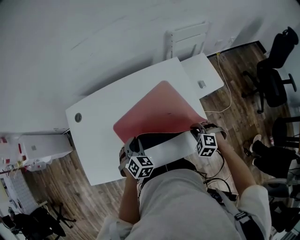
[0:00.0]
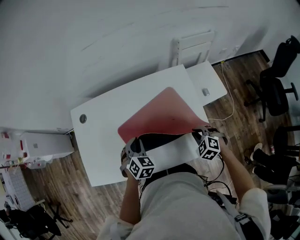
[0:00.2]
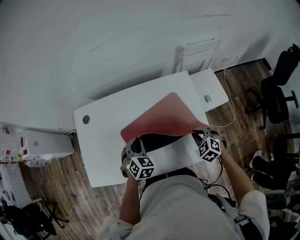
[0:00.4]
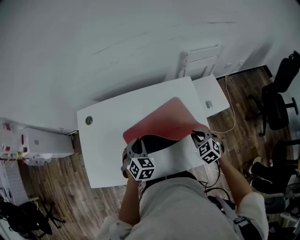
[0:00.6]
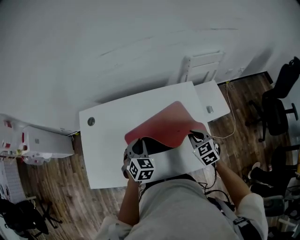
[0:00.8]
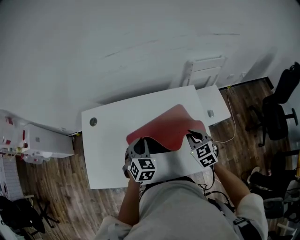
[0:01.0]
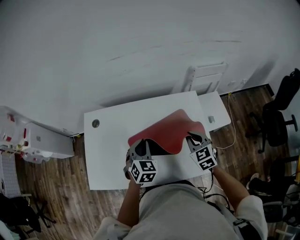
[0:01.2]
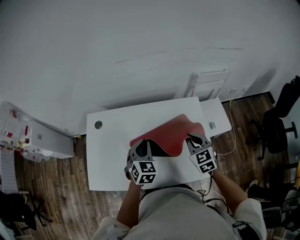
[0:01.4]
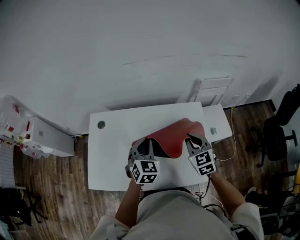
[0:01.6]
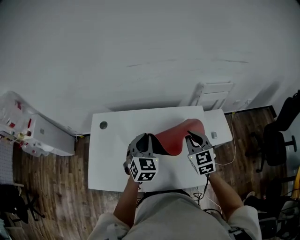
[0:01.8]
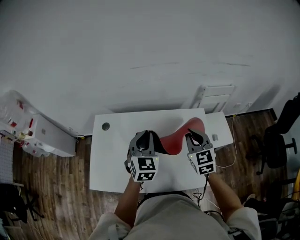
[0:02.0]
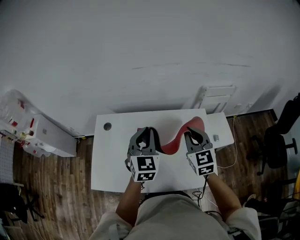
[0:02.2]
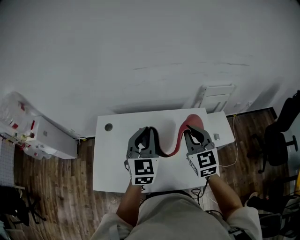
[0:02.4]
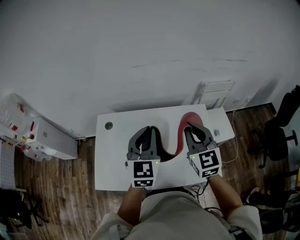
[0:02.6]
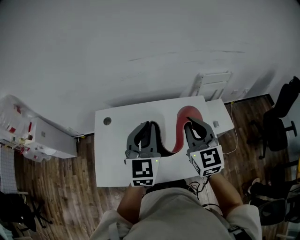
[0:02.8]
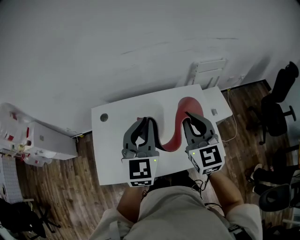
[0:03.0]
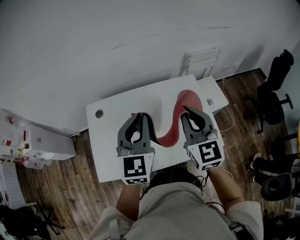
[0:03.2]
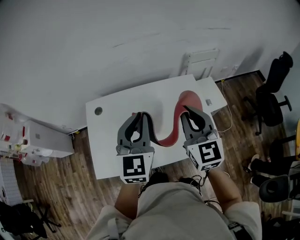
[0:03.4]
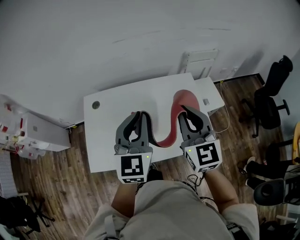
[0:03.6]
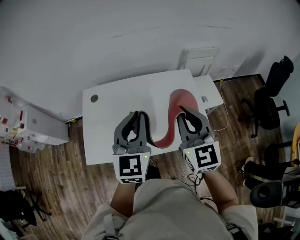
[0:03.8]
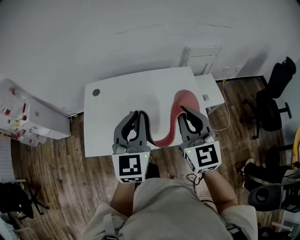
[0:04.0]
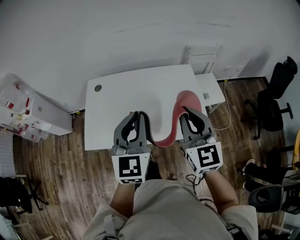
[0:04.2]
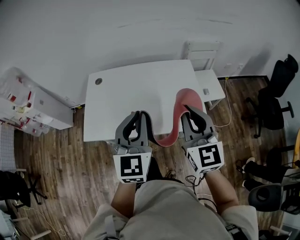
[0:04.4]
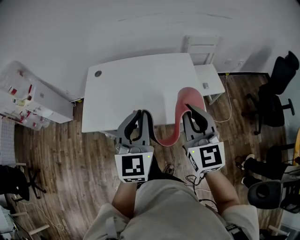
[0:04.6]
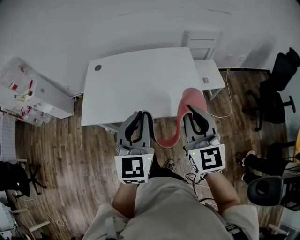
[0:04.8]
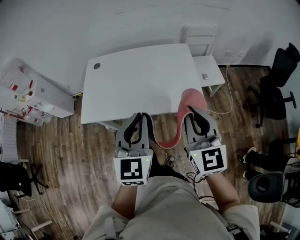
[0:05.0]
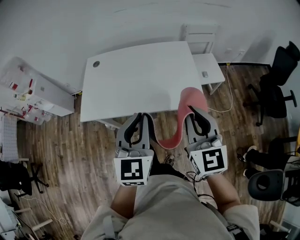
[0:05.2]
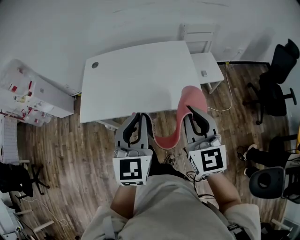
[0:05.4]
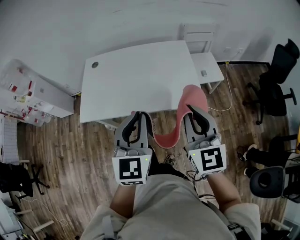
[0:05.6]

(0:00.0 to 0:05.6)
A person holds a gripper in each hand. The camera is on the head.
0:00.0 - 0:01.4: The right gripper is displaced upward, forward and to the left by about 25 cm, and points its fingers about 30 degrees further upward. The left gripper heads upward and forward, covering approximately 15 cm, and rotates about 30 degrees.
0:01.4 - 0:02.8: The right gripper heads upward and to the left, covering about 20 cm, and changes its angle by approximately 30 degrees, while the left gripper is displaced upward by approximately 20 cm, and turns by about 30 degrees.
0:02.8 - 0:04.2: The grippers both shift backward by roughly 20 cm.
0:04.2 - 0:05.6: The right gripper moves backward and to the right, about 15 cm. Meanwhile the left gripper travels backward by about 15 cm.

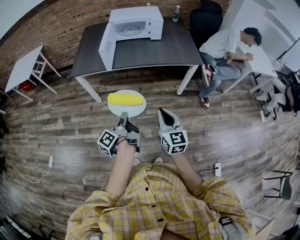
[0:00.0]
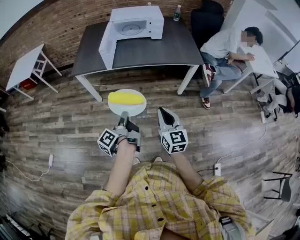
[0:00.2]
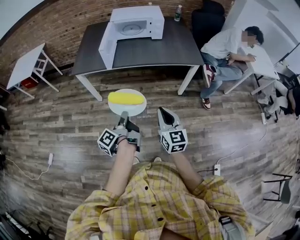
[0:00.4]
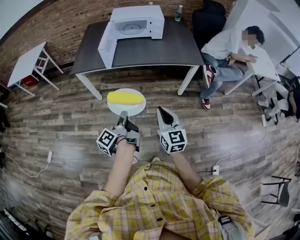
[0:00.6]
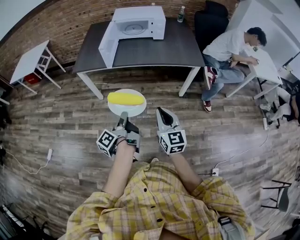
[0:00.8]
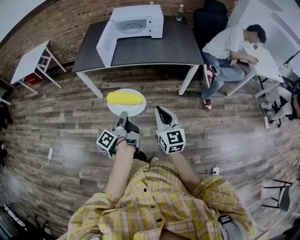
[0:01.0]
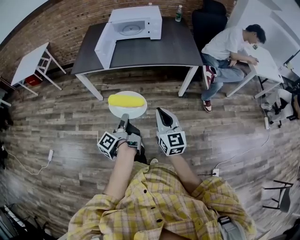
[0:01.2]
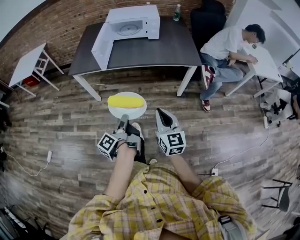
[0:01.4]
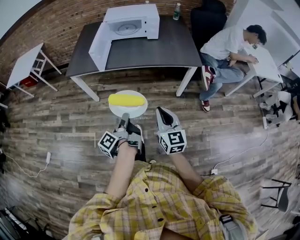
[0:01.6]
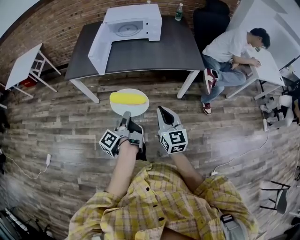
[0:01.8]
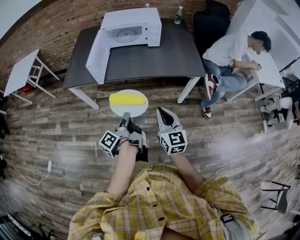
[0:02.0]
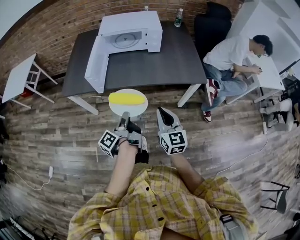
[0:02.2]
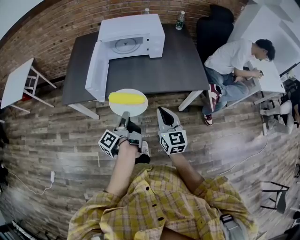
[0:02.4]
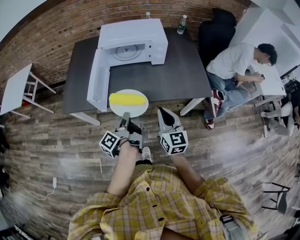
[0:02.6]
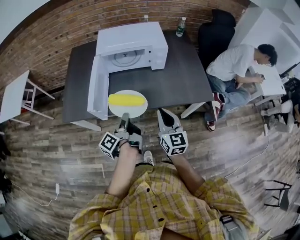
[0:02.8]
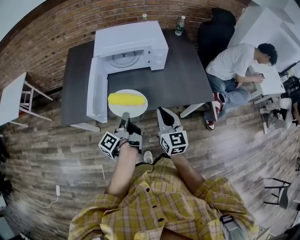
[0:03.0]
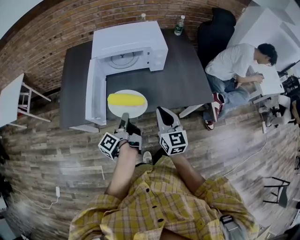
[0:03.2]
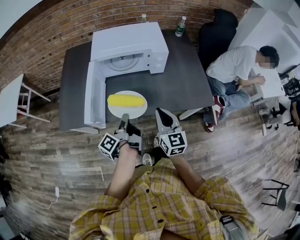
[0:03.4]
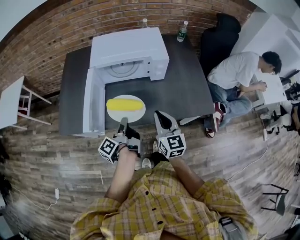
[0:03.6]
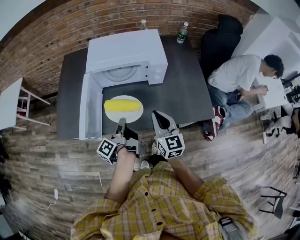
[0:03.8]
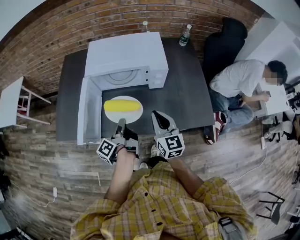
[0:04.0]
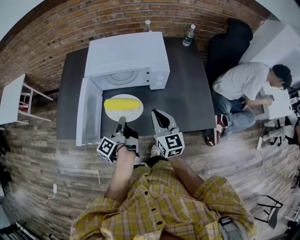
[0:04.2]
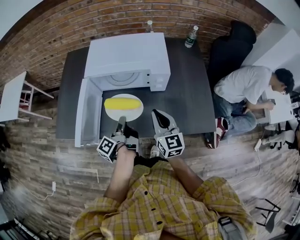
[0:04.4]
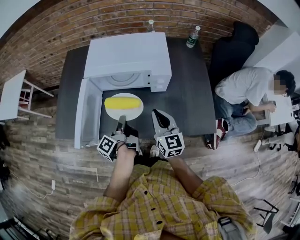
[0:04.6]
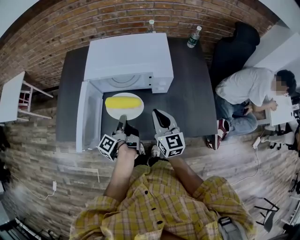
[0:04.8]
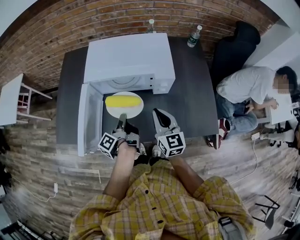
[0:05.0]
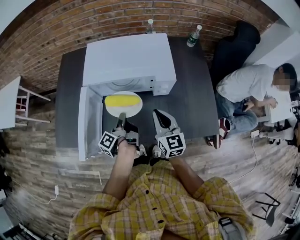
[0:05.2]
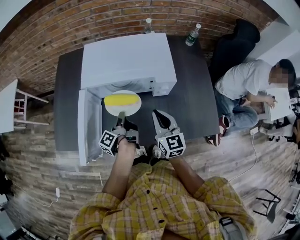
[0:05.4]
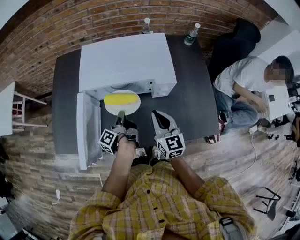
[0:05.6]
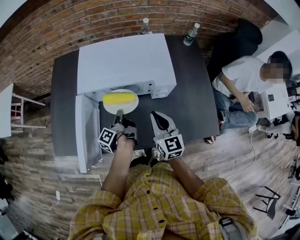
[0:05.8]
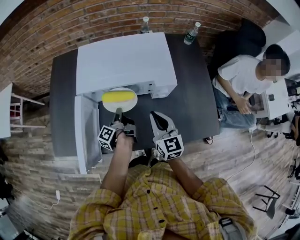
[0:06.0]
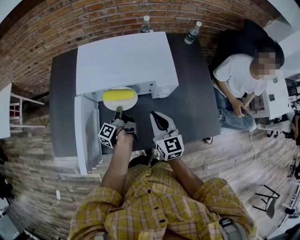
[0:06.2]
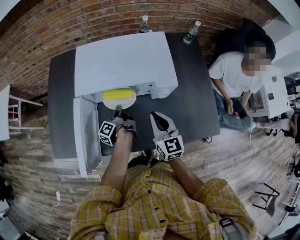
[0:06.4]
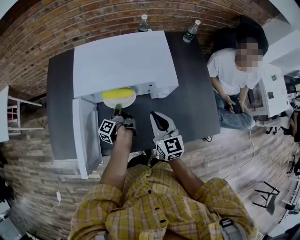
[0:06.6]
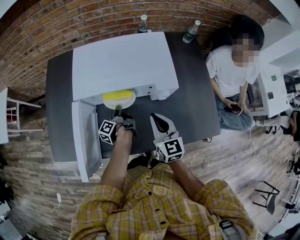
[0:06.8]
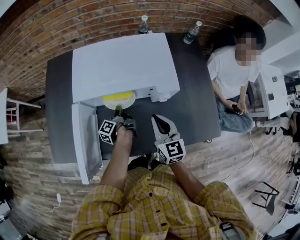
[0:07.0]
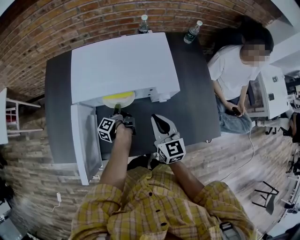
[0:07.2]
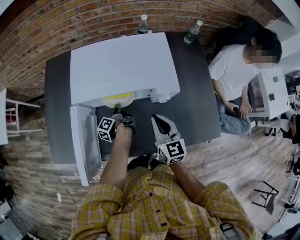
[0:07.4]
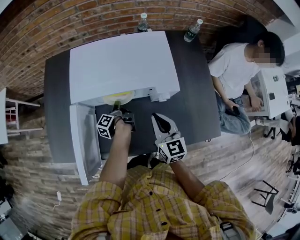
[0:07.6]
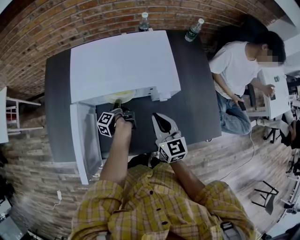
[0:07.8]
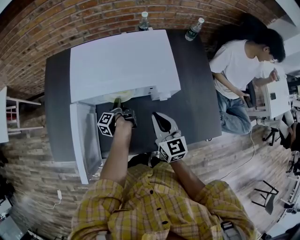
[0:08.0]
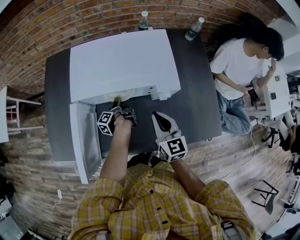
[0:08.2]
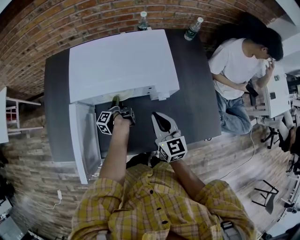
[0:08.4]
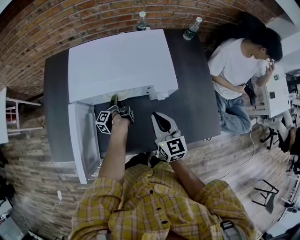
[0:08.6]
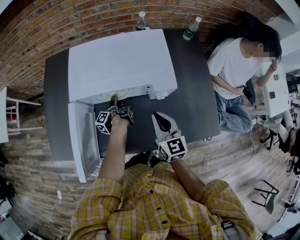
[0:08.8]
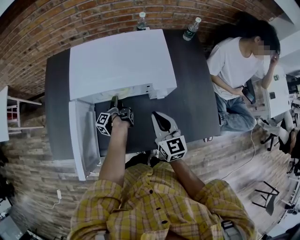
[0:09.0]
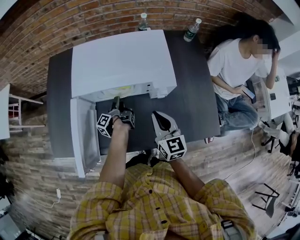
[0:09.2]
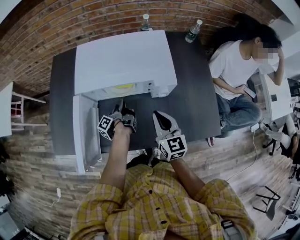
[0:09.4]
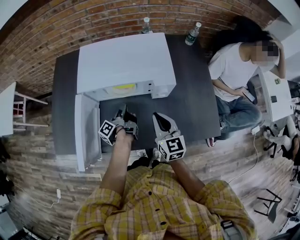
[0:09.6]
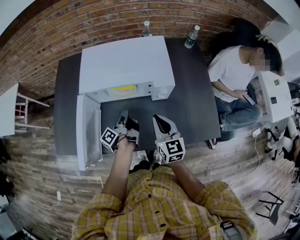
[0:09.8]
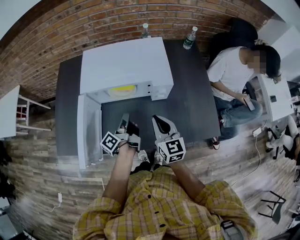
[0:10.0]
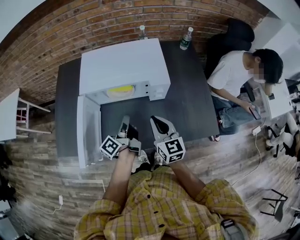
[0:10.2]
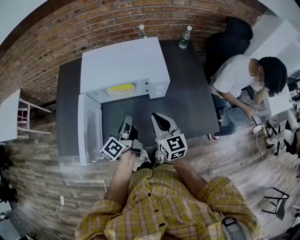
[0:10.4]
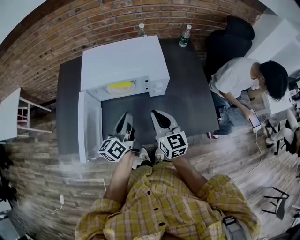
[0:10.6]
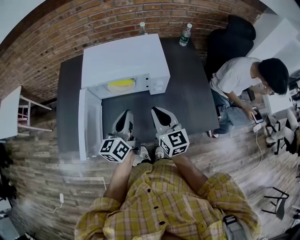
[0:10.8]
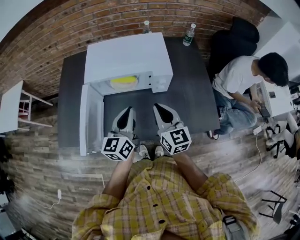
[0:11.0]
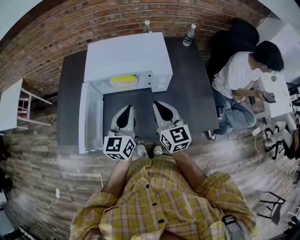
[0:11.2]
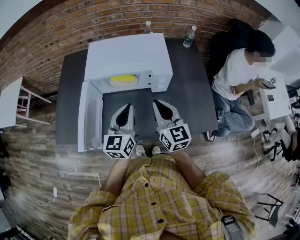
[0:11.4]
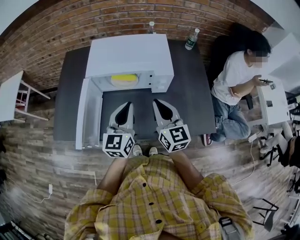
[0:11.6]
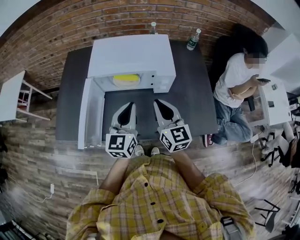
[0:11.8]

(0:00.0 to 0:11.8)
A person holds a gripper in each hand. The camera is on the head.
0:00.0 - 0:01.4: The right gripper moves some 5 cm.
0:01.4 - 0:03.0: The right gripper moves about 40 cm.
0:03.0 - 0:04.4: The right gripper moves about 20 cm.
0:04.4 - 0:06.0: The right gripper ends up about 10 cm from where it was.
0:08.8 - 0:10.4: The right gripper moves about 10 cm.
0:10.4 - 0:11.8: The right gripper goes roughly 5 cm upward.

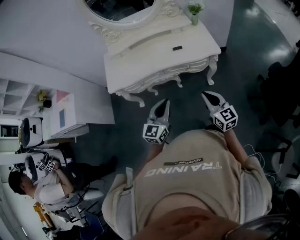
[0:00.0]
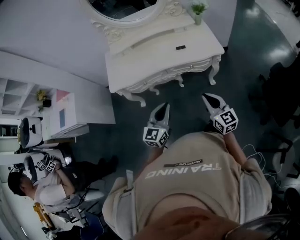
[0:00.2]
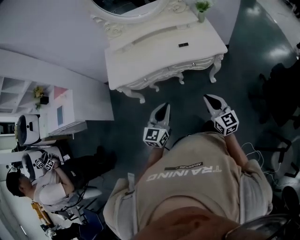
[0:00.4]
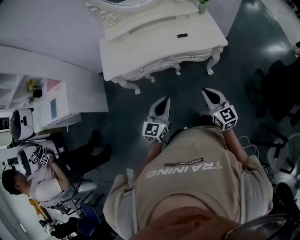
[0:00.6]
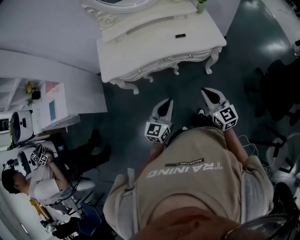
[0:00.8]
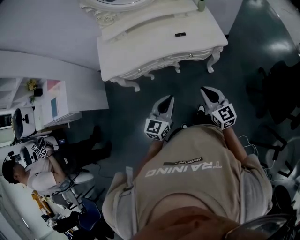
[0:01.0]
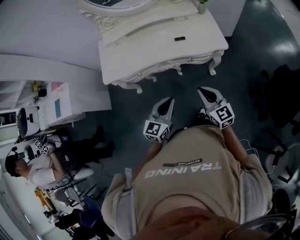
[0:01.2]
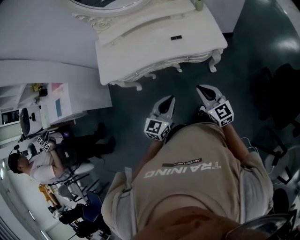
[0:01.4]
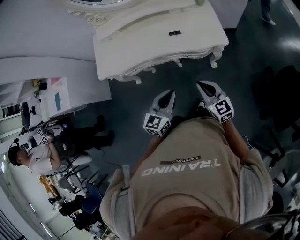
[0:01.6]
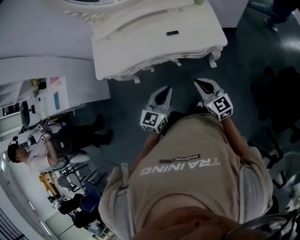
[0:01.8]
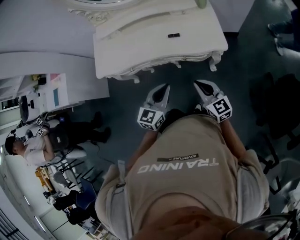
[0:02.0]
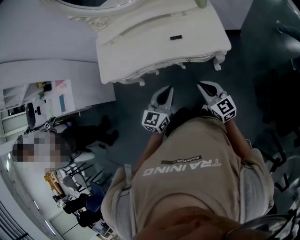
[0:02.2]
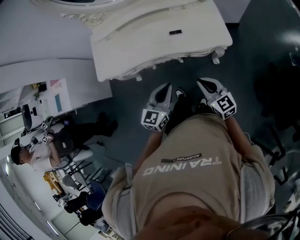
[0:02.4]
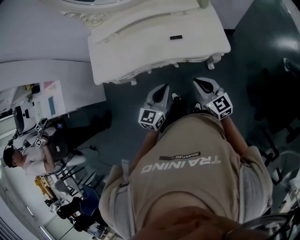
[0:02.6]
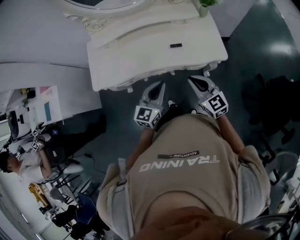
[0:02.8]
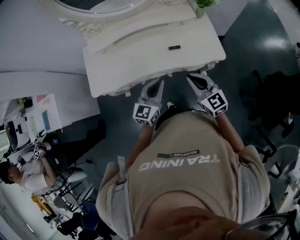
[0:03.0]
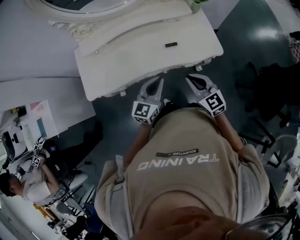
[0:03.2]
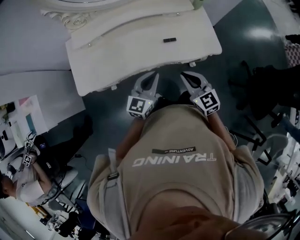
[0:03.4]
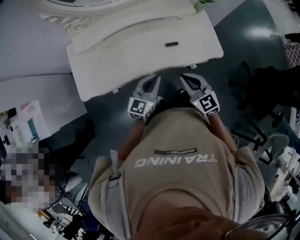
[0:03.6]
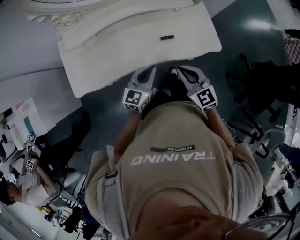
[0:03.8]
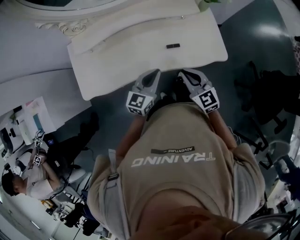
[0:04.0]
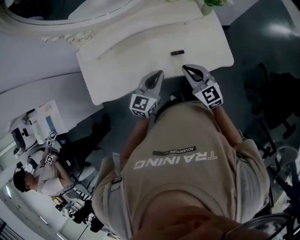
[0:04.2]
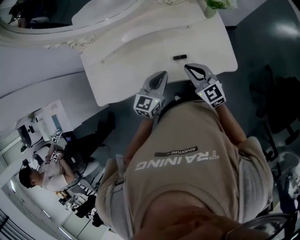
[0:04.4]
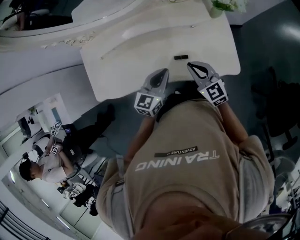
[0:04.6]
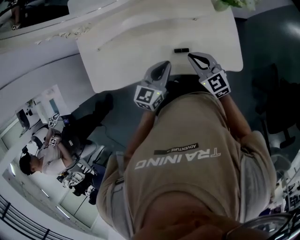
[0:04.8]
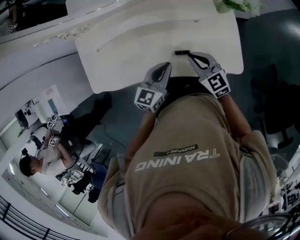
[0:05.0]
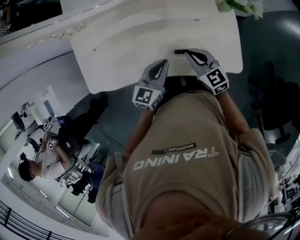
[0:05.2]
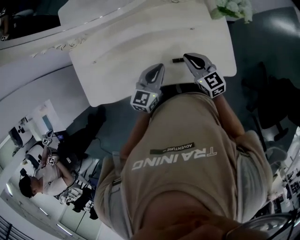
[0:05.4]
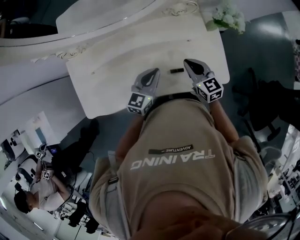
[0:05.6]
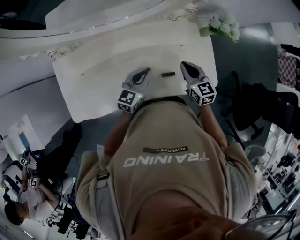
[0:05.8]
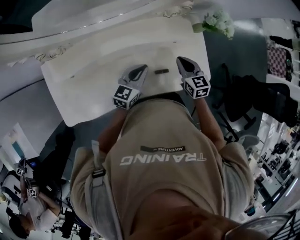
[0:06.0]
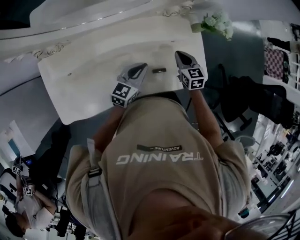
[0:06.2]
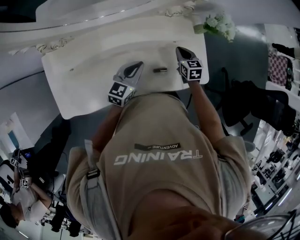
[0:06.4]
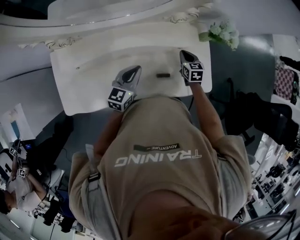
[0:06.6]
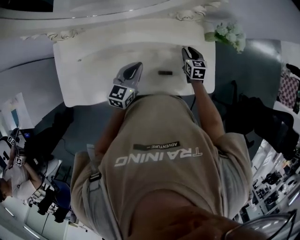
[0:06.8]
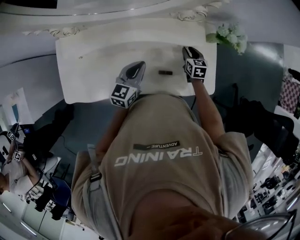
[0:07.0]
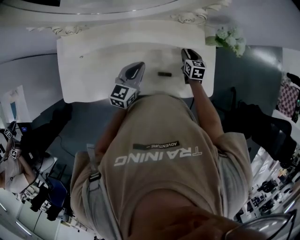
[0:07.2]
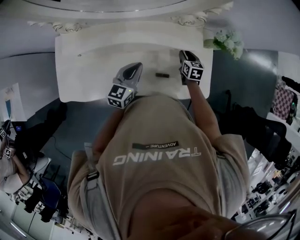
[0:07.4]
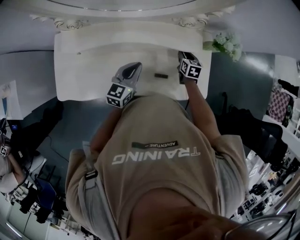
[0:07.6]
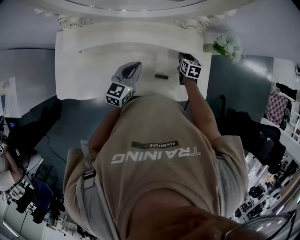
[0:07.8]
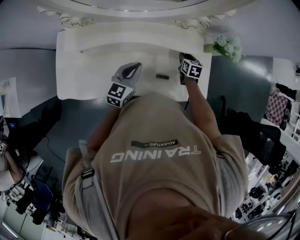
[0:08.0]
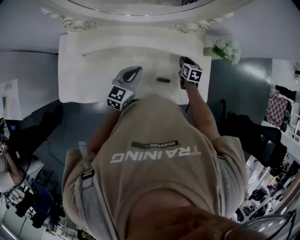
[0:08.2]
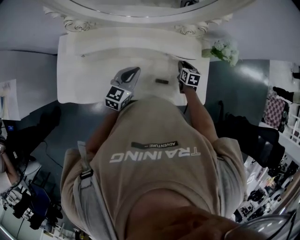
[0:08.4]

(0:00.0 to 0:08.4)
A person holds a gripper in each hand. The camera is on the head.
0:00.0 - 0:01.4: The left gripper moves to the right, forward and downward, roughly 10 cm. The right gripper heads forward, covering roughly 10 cm.
0:01.4 - 0:02.8: Both grippers move forward, roughly 15 cm.
0:02.8 - 0:04.2: The two grippers go about 20 cm forward.
0:04.2 - 0:05.6: Both grippers move forward, some 15 cm.
0:05.6 - 0:07.0: The right gripper is displaced downward and forward by approximately 20 cm, changes its angle by roughly 20 degrees, and opens its fingers.
0:07.0 - 0:08.4: The grippers move only a little.
